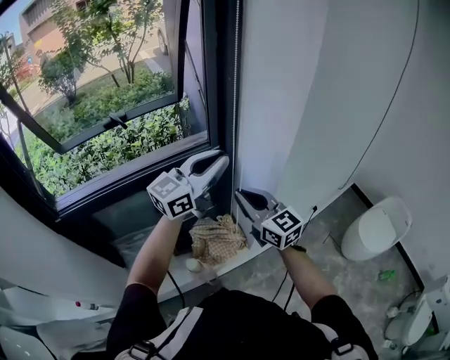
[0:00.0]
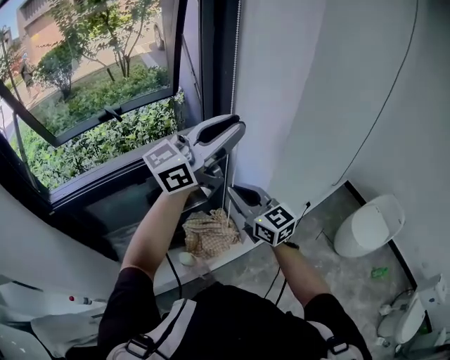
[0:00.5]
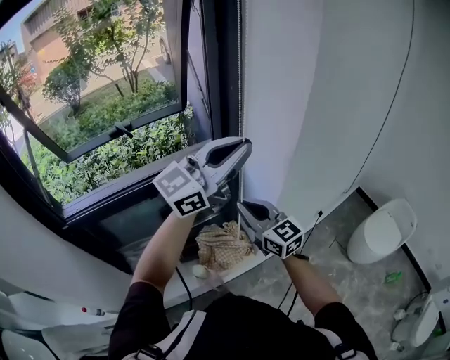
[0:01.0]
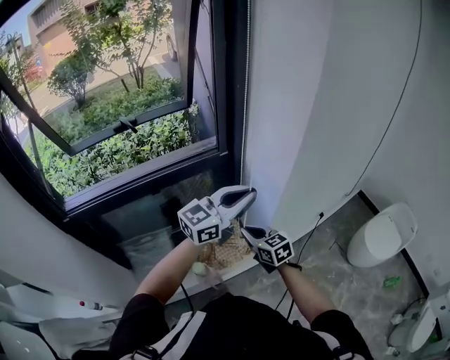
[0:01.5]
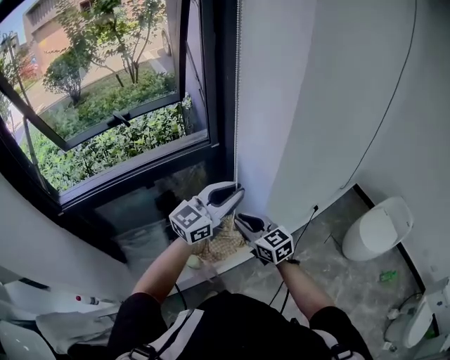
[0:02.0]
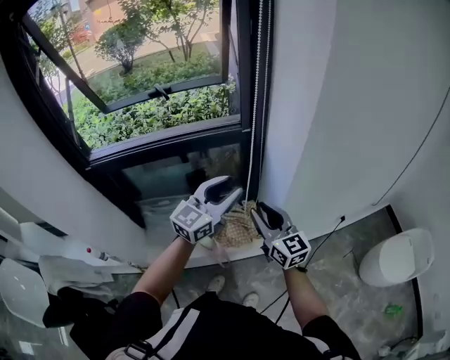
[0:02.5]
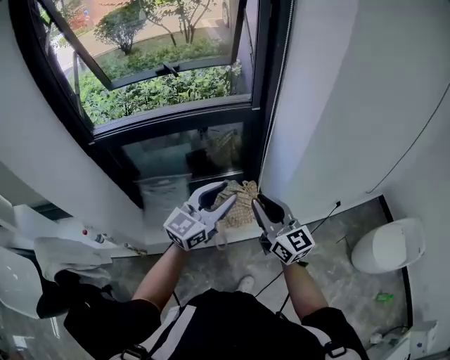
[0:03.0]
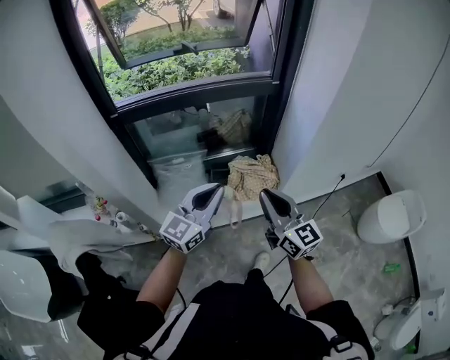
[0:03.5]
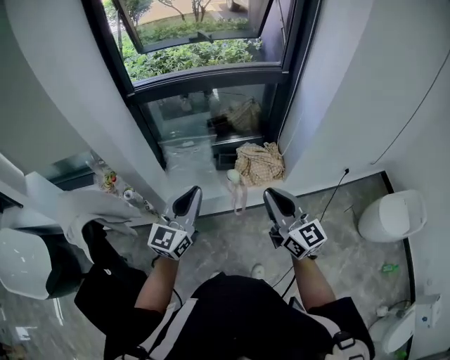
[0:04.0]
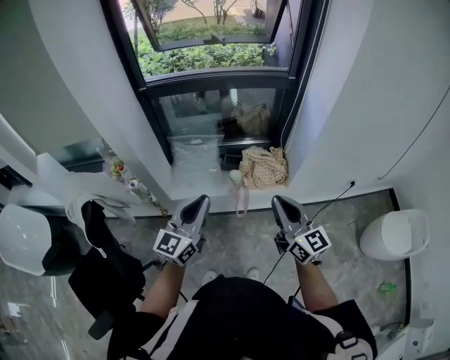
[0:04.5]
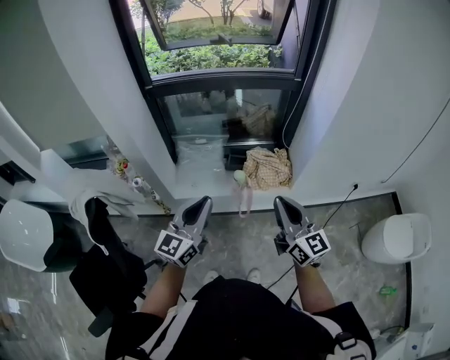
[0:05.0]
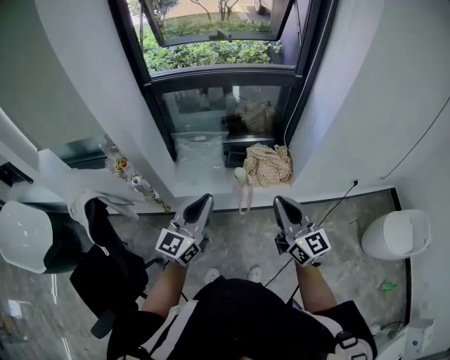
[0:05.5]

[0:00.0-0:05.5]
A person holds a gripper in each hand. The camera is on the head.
0:00.0 to 0:02.0: The left gripper shifts about 10 cm downward, to the right and backward, while the right gripper travels downward by approximately 10 cm.
0:02.0 to 0:03.5: The right gripper is displaced backward by roughly 20 cm, and changes its angle by roughly 20 degrees, while the left gripper travels backward and to the left by about 30 cm, swivels some 30 degrees, and opens and closes again.
0:03.5 to 0:05.5: The right gripper is displaced backward by approximately 10 cm, while the left gripper is displaced backward and to the left by about 15 cm.

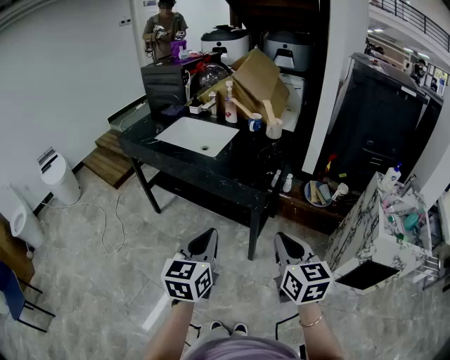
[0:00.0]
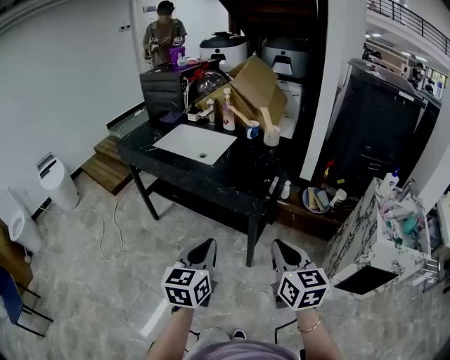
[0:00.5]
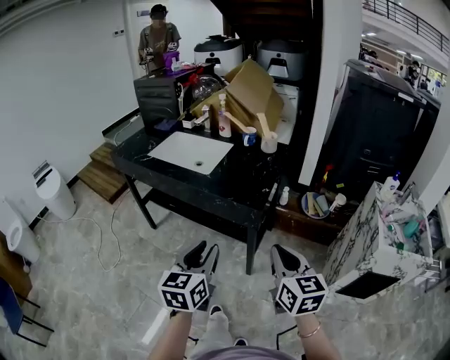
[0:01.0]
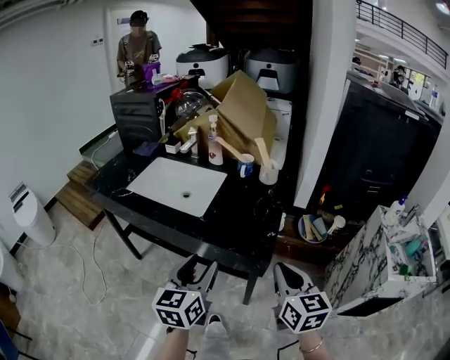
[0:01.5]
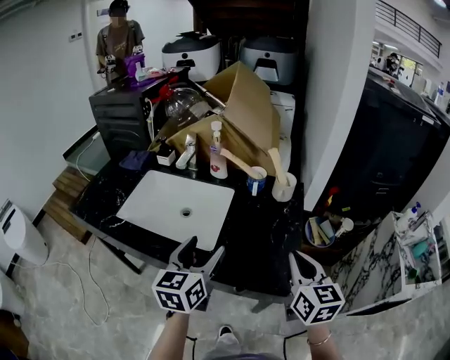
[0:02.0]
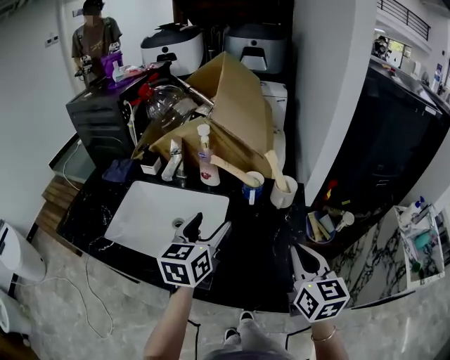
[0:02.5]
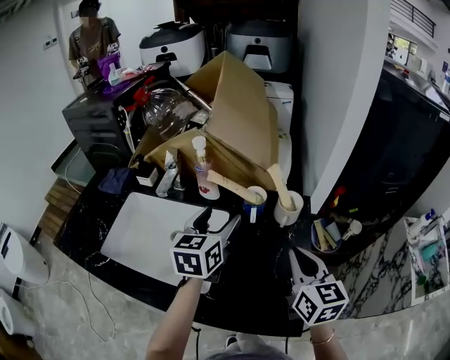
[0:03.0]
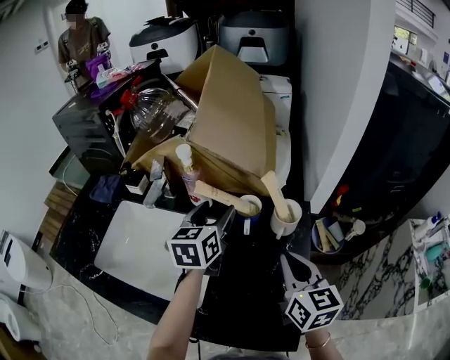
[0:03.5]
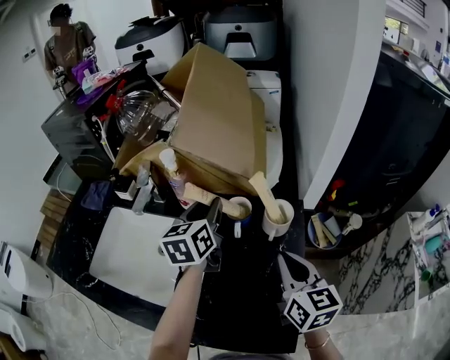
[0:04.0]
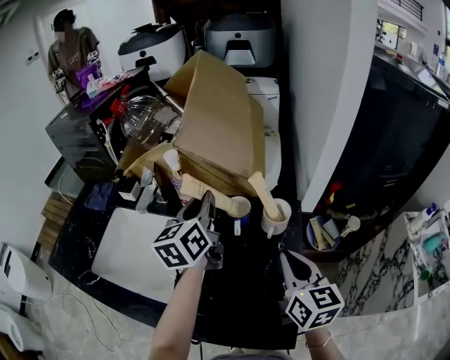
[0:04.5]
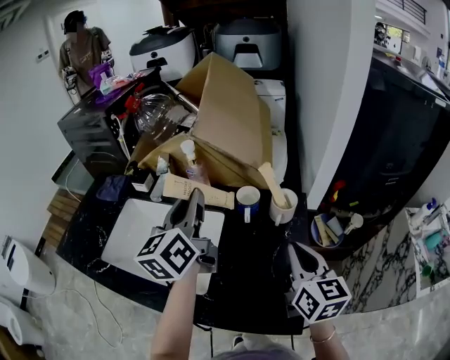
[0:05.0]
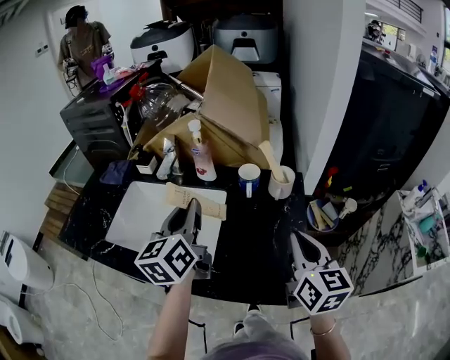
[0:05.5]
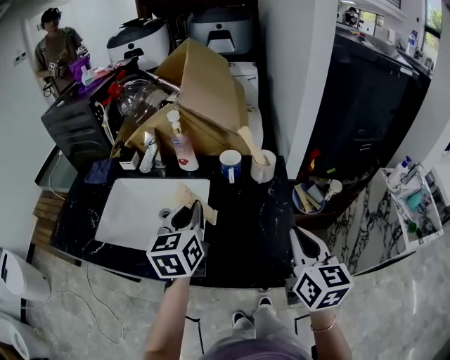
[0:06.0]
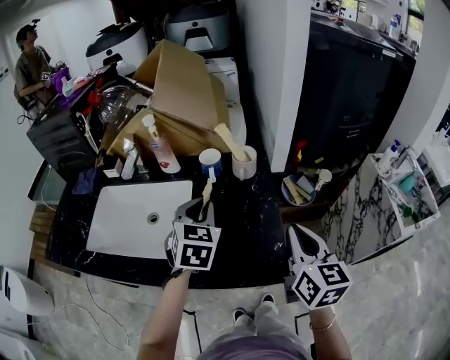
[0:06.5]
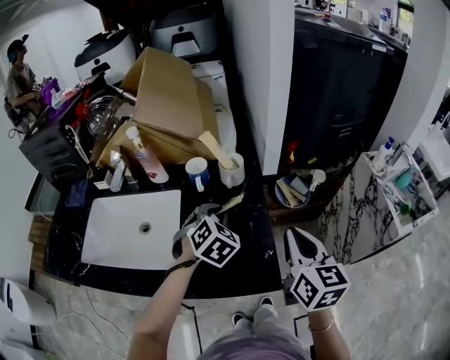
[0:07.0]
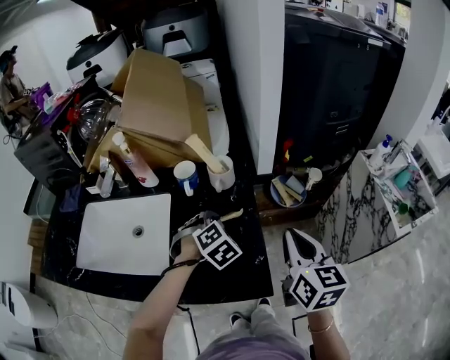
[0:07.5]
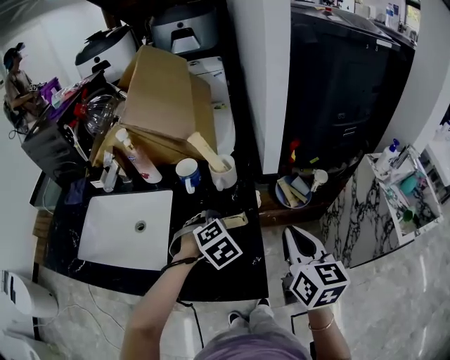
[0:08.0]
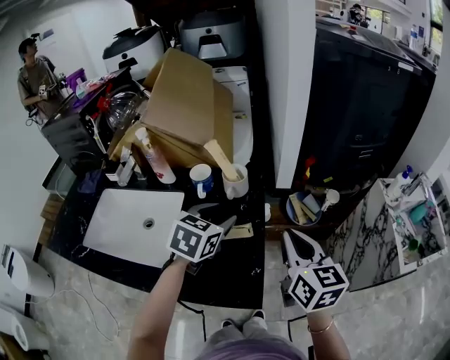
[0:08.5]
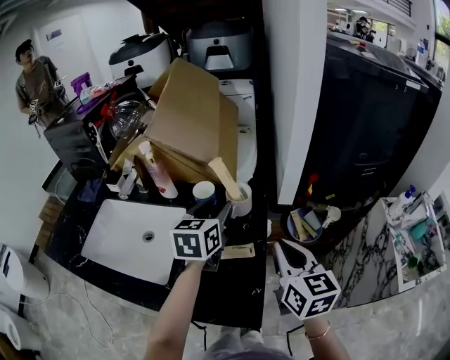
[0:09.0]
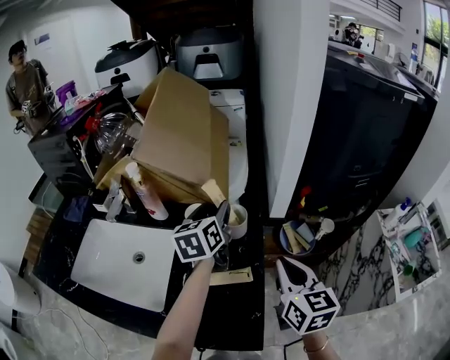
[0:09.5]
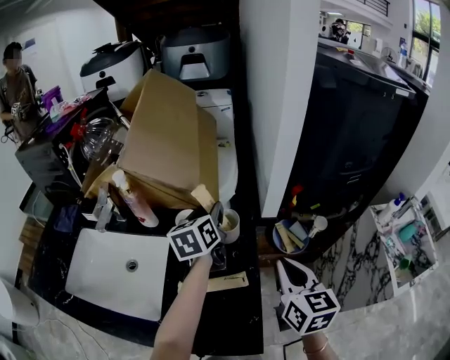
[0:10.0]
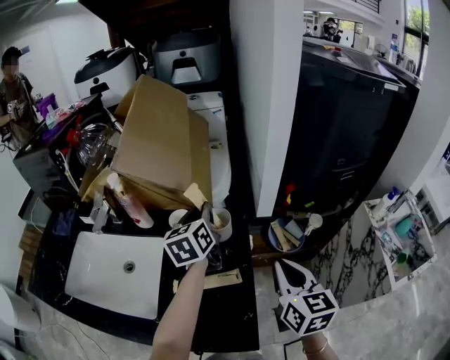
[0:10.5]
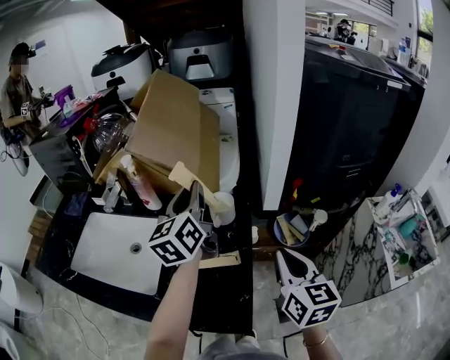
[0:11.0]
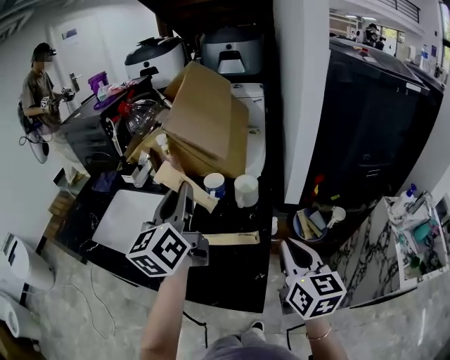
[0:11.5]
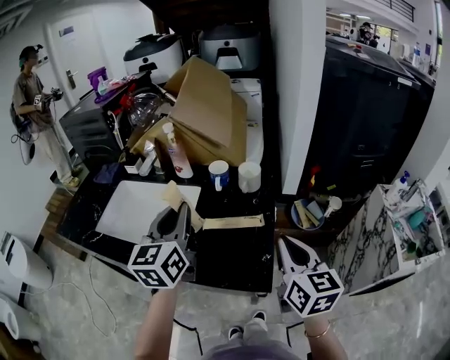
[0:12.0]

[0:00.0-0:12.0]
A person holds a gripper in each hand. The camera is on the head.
0:00.0 to 0:02.0: Both grippers move forward, about 40 cm. The left gripper opens up.
0:02.0 to 0:04.0: The right gripper travels forward by about 20 cm. The left gripper goes about 35 cm forward, and closes its fingers.
0:04.0 to 0:06.0: The grippers both shift backward by roughly 20 cm.
0:06.0 to 0:08.0: The left gripper heads to the right and downward, covering roughly 25 cm, tilts its fingers roughly 50 degrees downward, and opens its fingers. The right gripper goes roughly 10 cm to the right.
0:08.0 to 0:10.0: The left gripper is displaced forward and upward by about 25 cm, and rolls counterclockwise, seen from behind, by approximately 70 degrees, while the right gripper is displaced forward by about 10 cm.
0:10.0 to 0:12.0: The left gripper shifts roughly 30 cm backward and to the left, swivels roughly 30 degrees, and closes its fingers, while the right gripper goes about 15 cm backward.

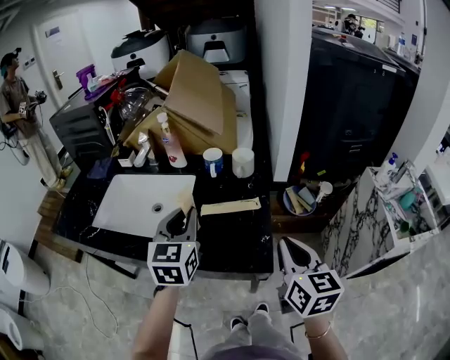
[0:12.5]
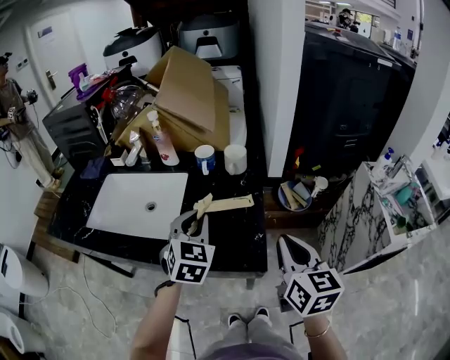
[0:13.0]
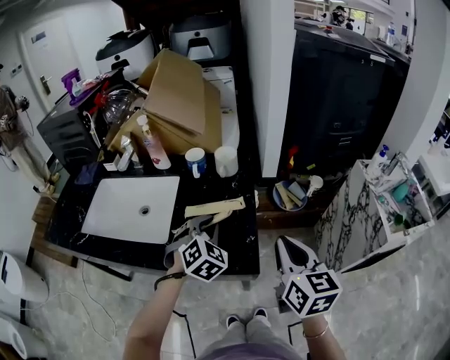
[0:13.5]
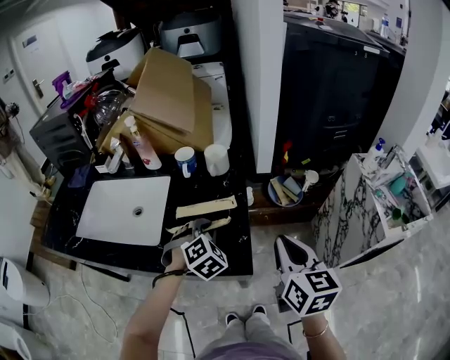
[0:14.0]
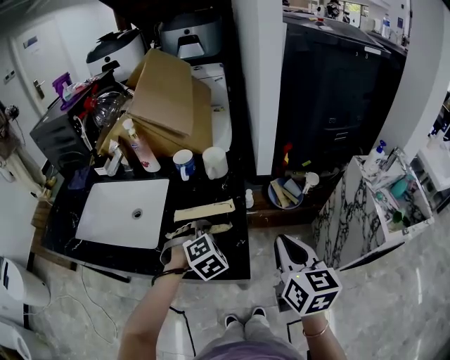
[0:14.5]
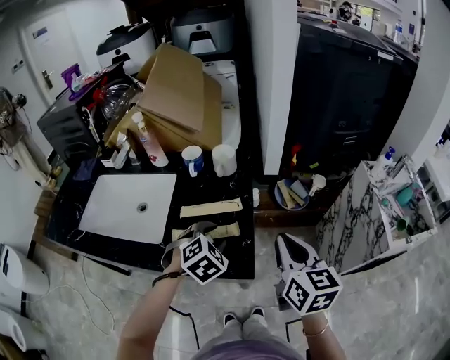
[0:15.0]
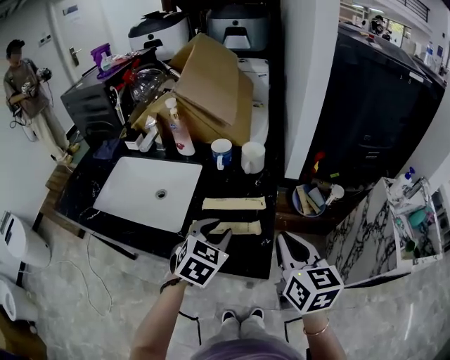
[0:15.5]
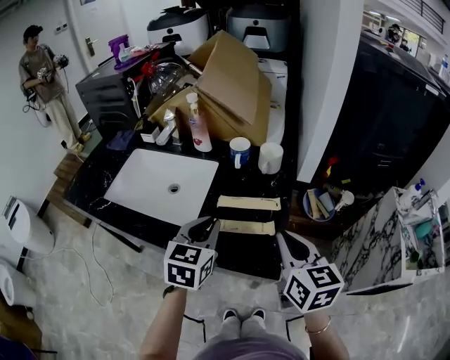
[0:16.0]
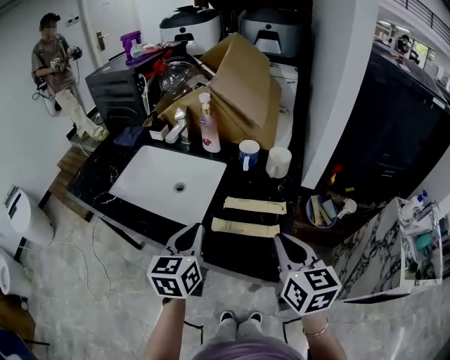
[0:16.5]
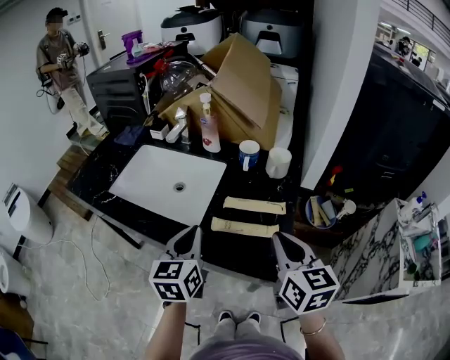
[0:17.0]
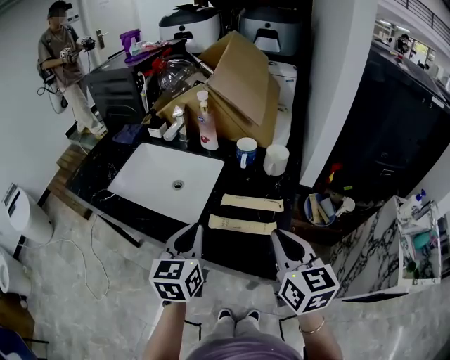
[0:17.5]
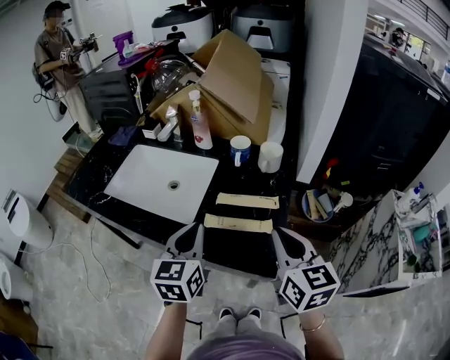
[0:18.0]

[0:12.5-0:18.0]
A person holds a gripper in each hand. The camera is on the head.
0:12.5 to 0:14.5: The right gripper moves to the right, some 5 cm. Meanwhile the left gripper shifts roughly 20 cm downward and to the right, and points its fingers roughly 40 degrees further downward.
0:14.5 to 0:16.0: The right gripper goes some 10 cm to the left; the left gripper goes about 15 cm to the left and upward, and twists roughly 60 degrees counterclockwise, seen from behind.
0:16.0 to 0:18.0: The left gripper moves about 5 cm.

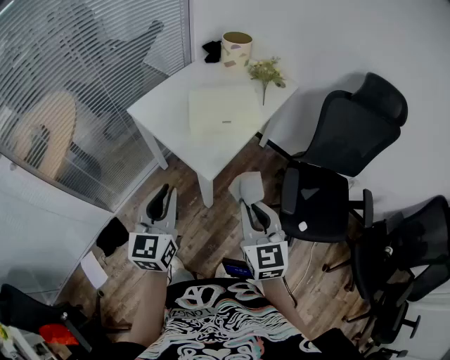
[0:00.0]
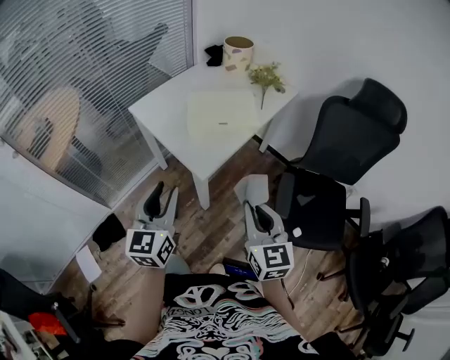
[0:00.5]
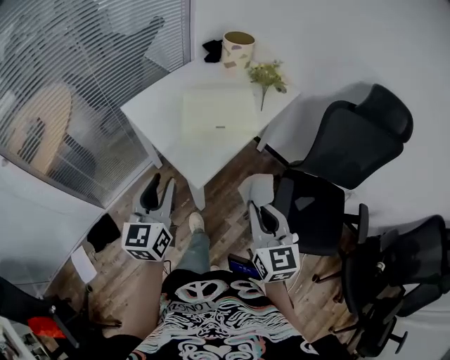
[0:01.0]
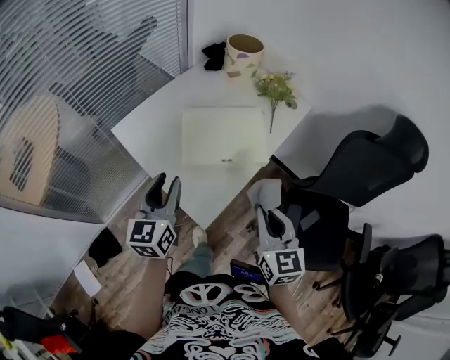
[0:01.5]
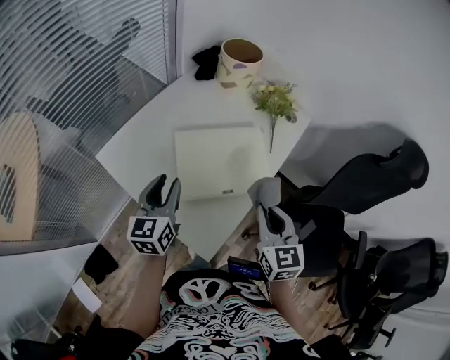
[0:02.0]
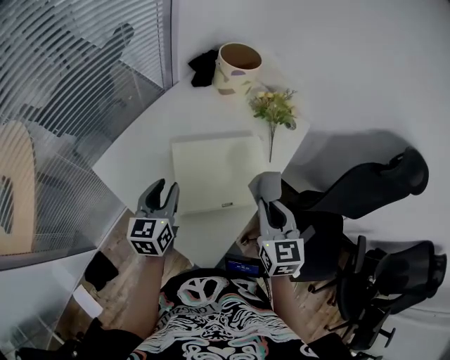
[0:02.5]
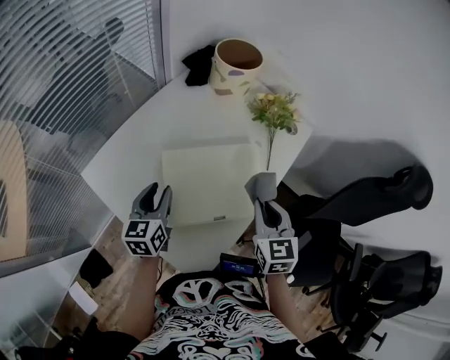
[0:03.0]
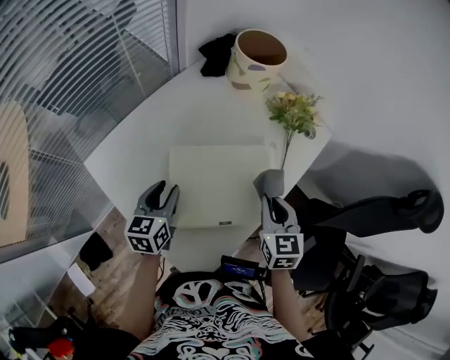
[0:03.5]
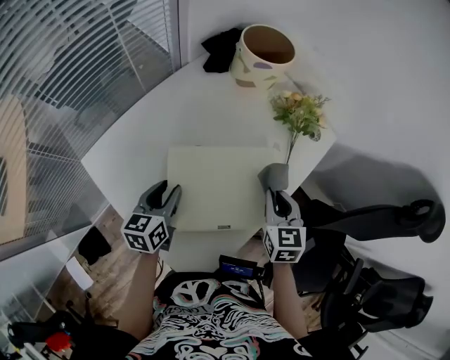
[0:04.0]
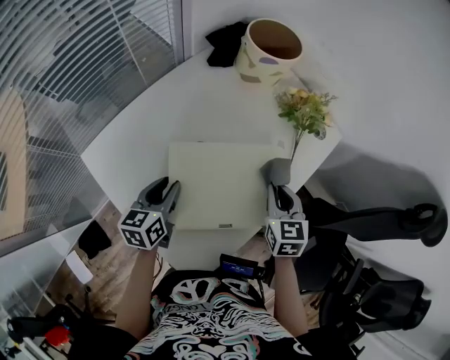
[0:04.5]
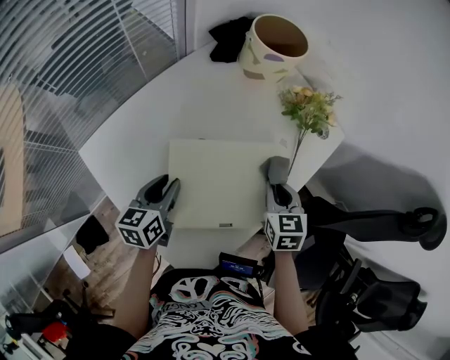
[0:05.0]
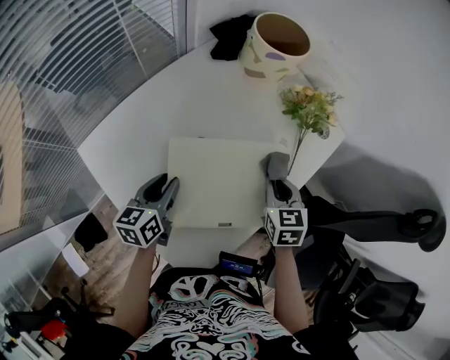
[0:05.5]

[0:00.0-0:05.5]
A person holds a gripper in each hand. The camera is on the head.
0:00.0 to 0:02.0: The grippers both shift forward by some 35 cm. The left gripper opens.
0:02.0 to 0:03.5: The right gripper goes roughly 20 cm forward and downward. Meanwhile the left gripper goes approximately 15 cm downward and forward.
0:03.5 to 0:05.5: The right gripper shifts approximately 10 cm forward and downward.
